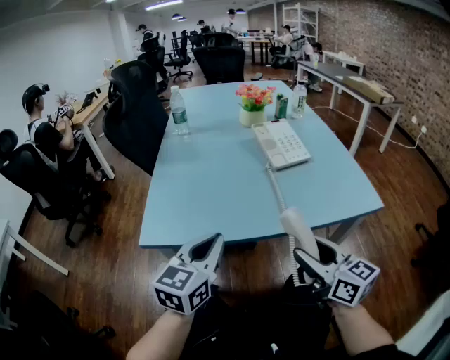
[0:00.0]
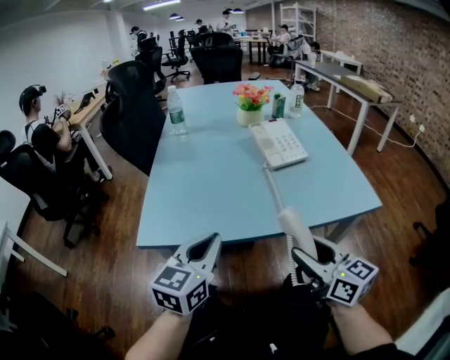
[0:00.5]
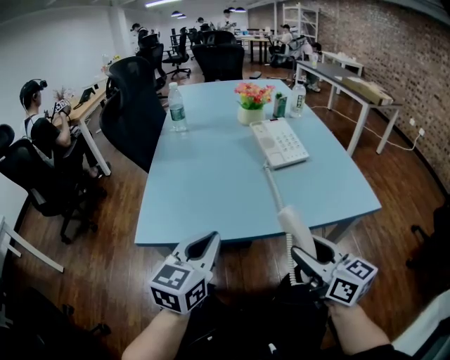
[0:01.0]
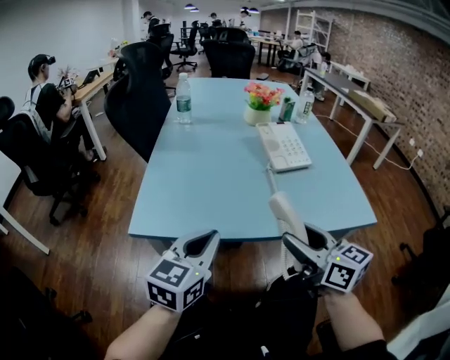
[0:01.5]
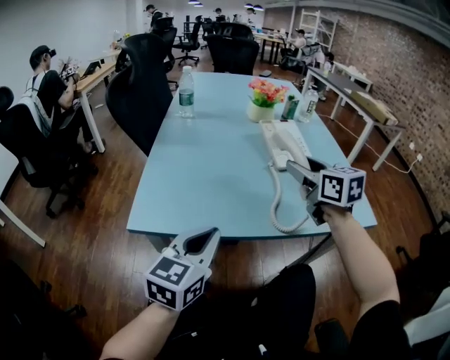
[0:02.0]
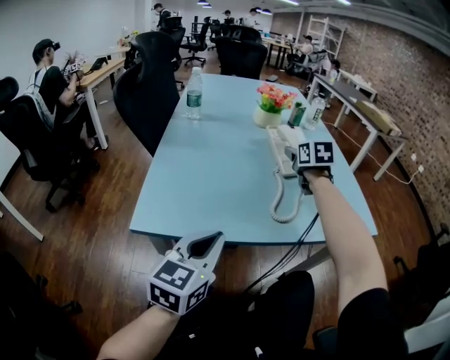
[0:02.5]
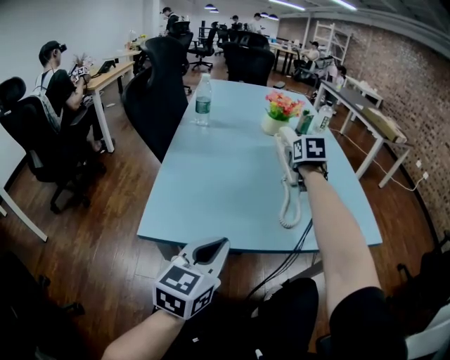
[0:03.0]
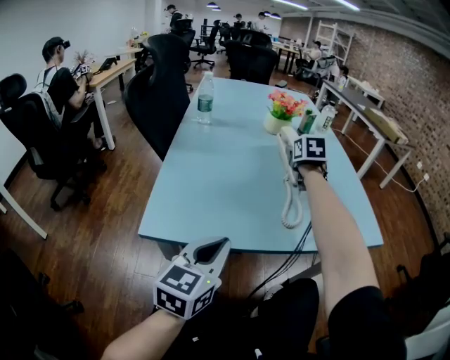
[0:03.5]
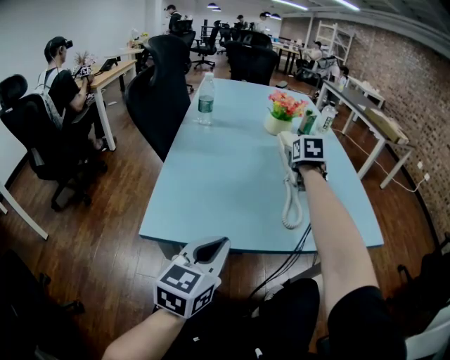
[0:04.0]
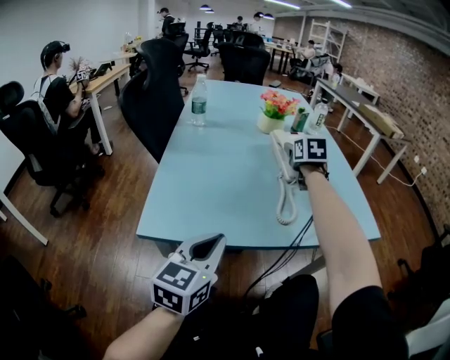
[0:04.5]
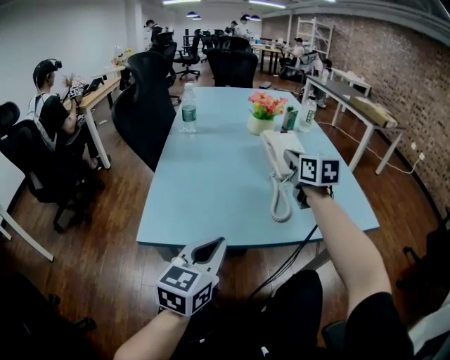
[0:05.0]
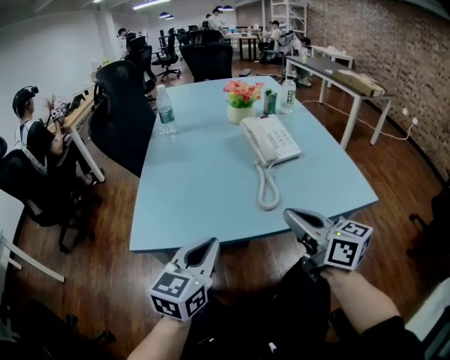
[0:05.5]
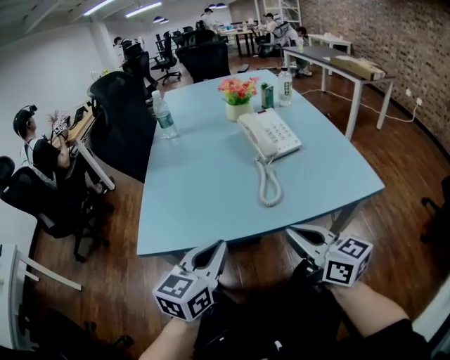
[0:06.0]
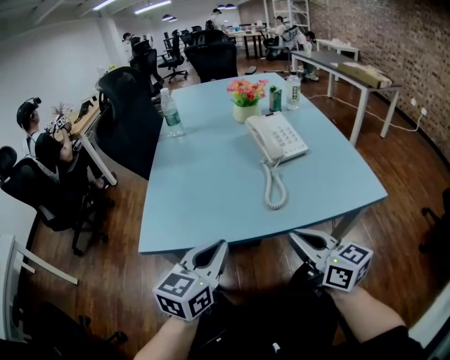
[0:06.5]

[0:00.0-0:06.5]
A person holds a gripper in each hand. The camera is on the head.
0:00.0 to 0:02.0: The right gripper heads forward, covering about 25 cm.
0:02.0 to 0:04.5: The right gripper moves forward, approximately 15 cm, and swivels approximately 20 degrees.
0:04.5 to 0:06.5: The right gripper heads backward, covering roughly 35 cm, swivels some 40 degrees, and closes its fingers.

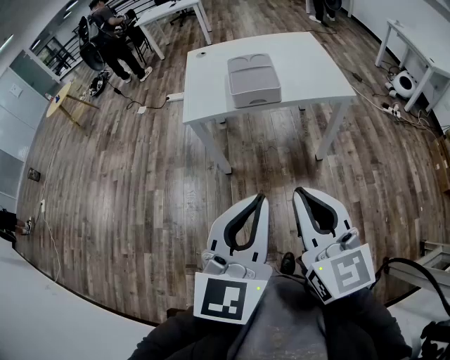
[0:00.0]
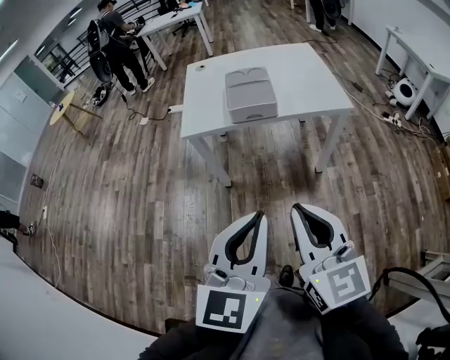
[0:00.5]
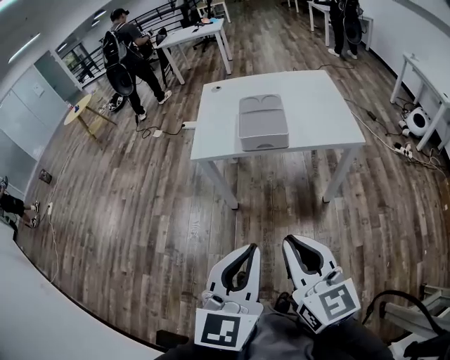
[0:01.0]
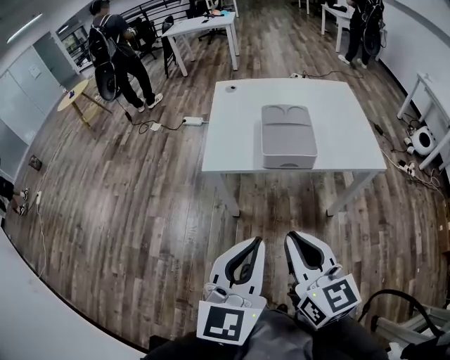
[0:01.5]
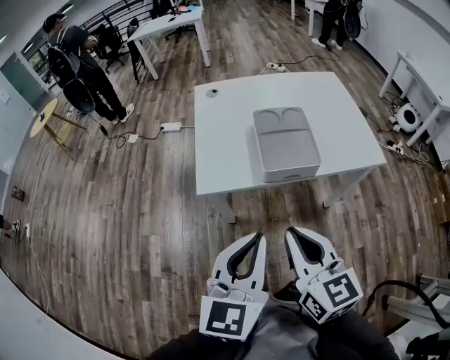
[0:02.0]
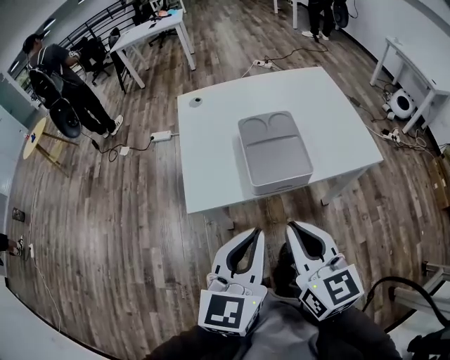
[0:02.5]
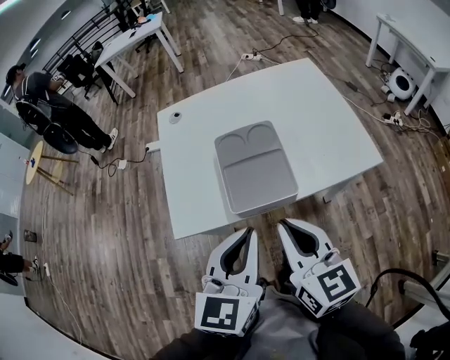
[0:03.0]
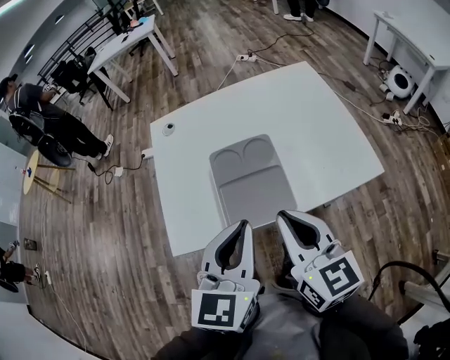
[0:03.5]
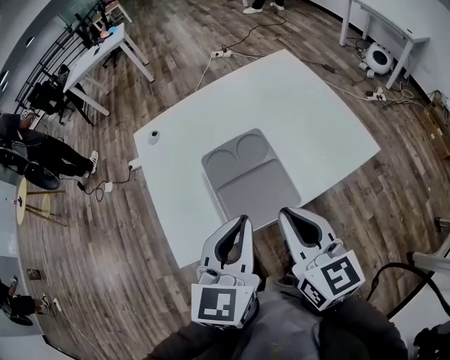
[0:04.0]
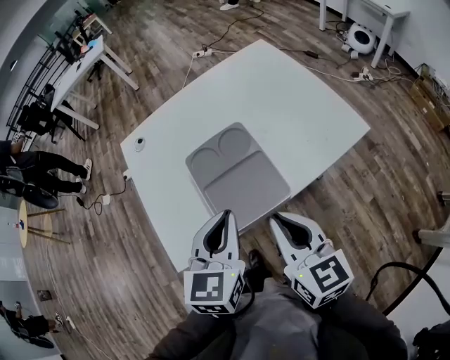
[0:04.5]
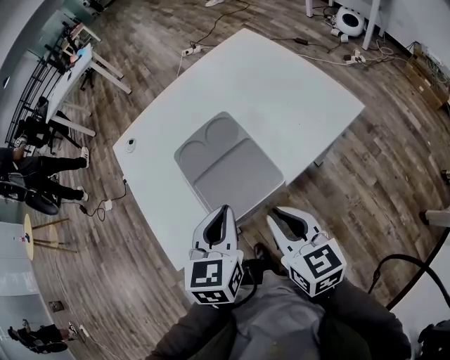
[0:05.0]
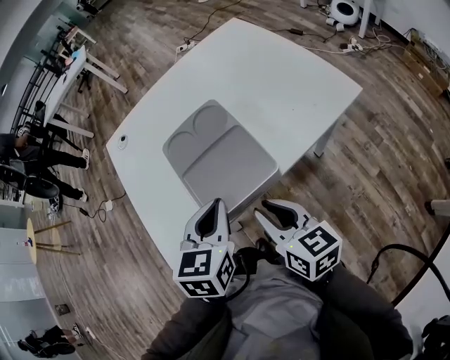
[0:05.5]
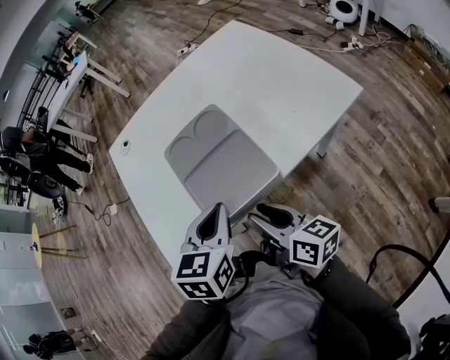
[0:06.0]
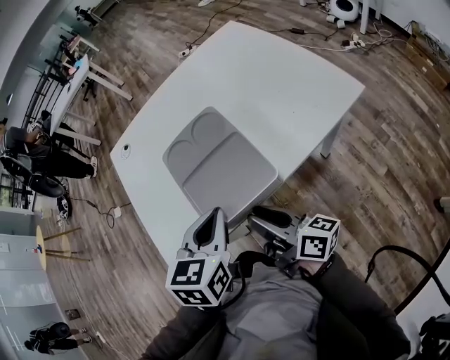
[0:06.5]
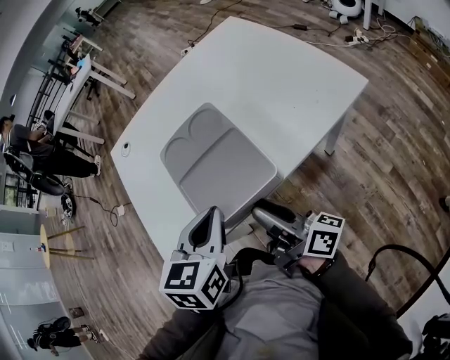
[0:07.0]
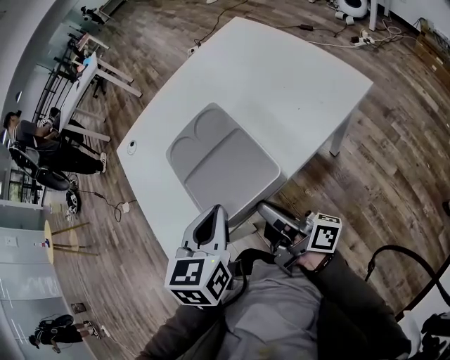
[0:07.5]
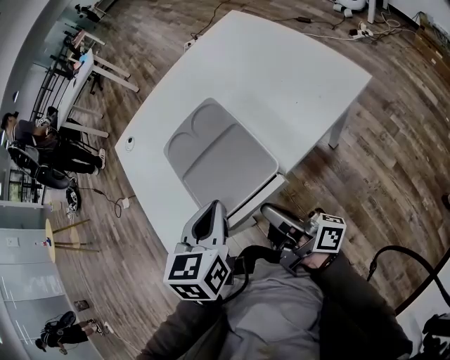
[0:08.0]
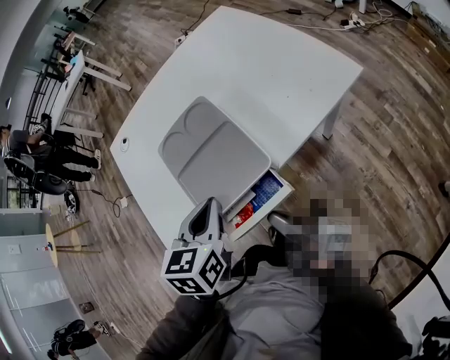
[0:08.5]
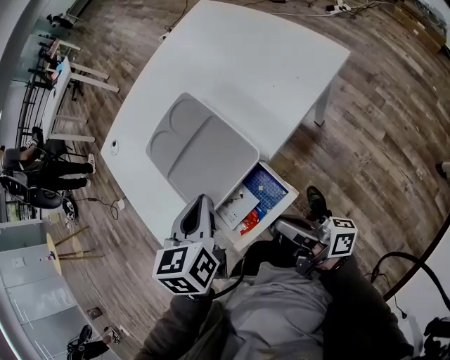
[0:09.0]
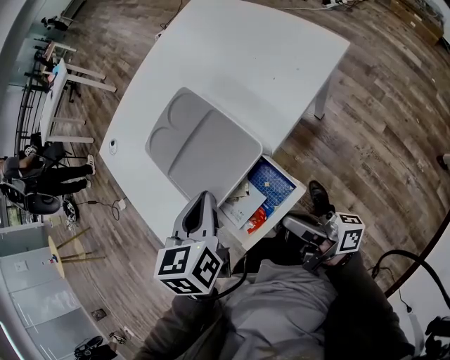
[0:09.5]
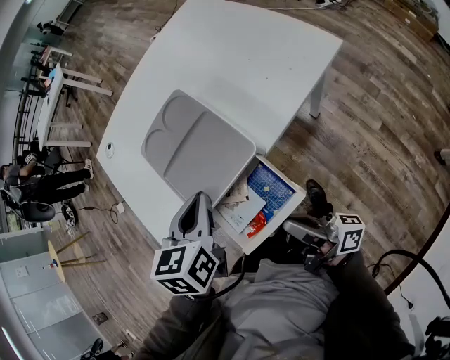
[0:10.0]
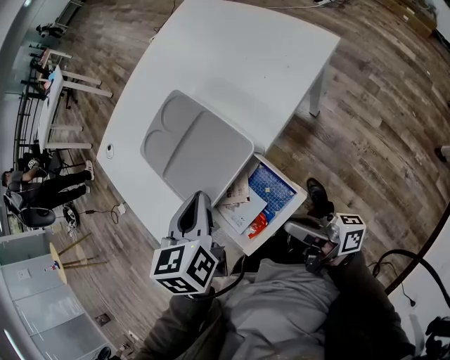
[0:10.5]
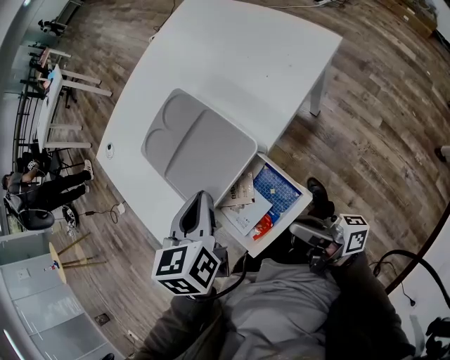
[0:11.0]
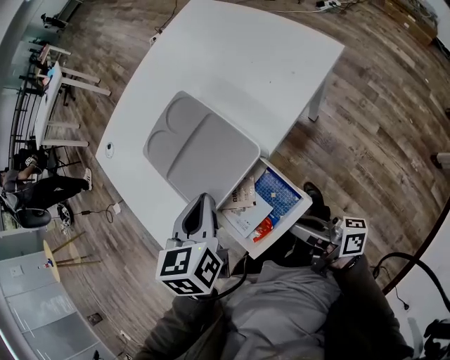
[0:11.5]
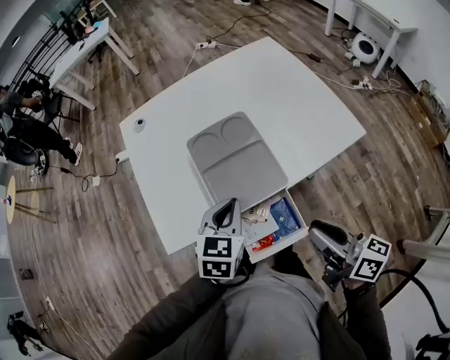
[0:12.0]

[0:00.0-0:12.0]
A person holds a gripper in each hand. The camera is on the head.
0:00.0 to 0:02.0: The left gripper is displaced forward by some 25 cm. The right gripper moves forward and to the left, roughly 25 cm.
0:02.0 to 0:04.0: The two grippers go approximately 20 cm forward.
0:04.0 to 0:06.0: The grippers both shift downward by roughly 15 cm. The right gripper rotates roughly 30 degrees, and opens up.
0:06.0 to 0:08.0: The right gripper angles its fingers upward, by about 30 degrees, and closes up.
0:08.0 to 0:10.0: The right gripper moves backward, about 10 cm.
0:10.0 to 0:12.0: The right gripper is displaced upward and to the right by roughly 15 cm, and points its fingers approximately 30 degrees further downward.

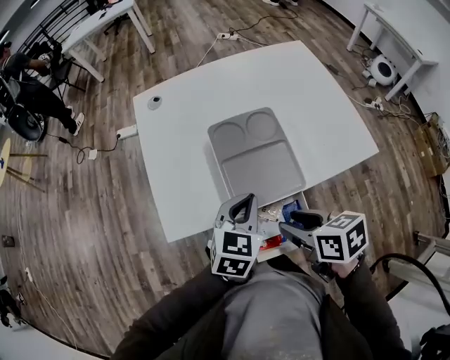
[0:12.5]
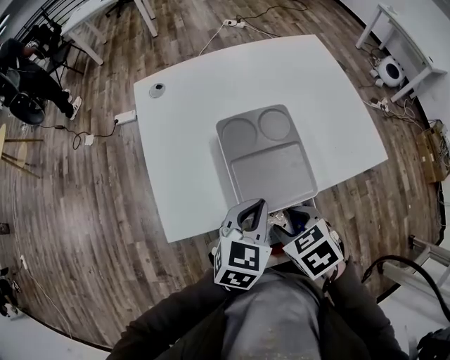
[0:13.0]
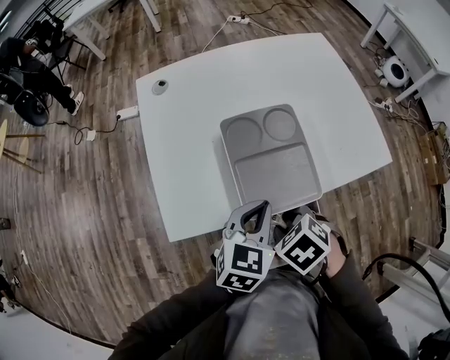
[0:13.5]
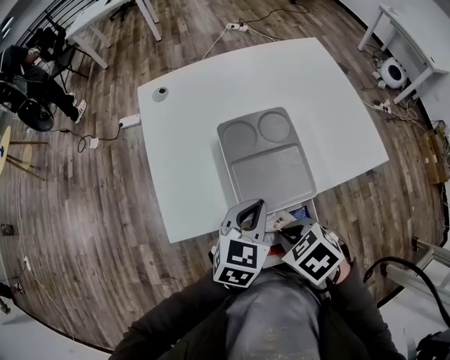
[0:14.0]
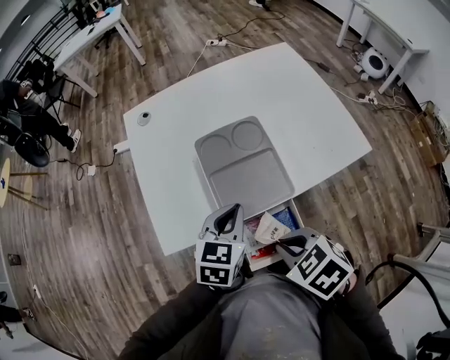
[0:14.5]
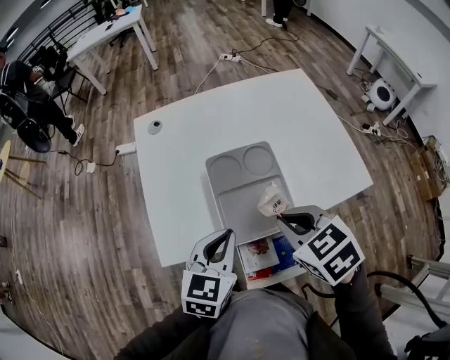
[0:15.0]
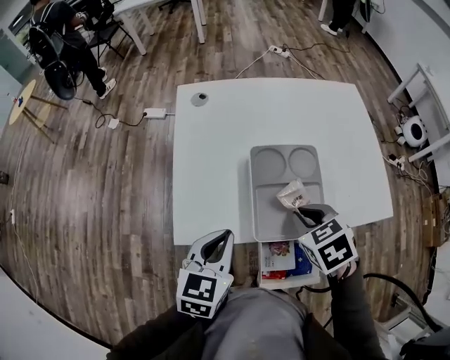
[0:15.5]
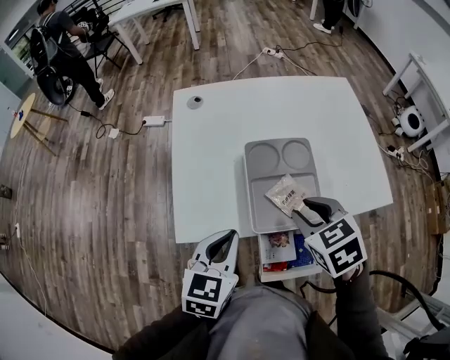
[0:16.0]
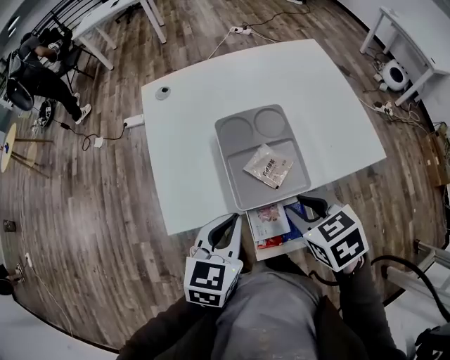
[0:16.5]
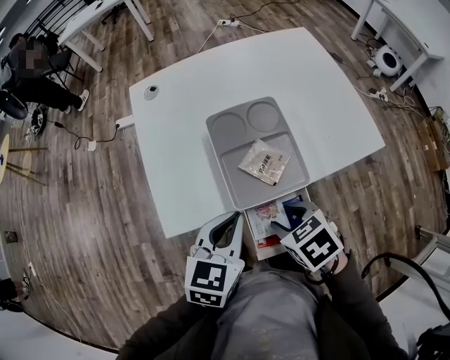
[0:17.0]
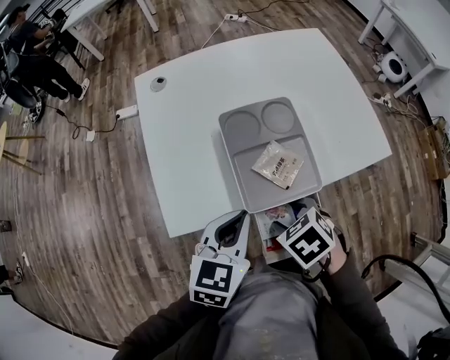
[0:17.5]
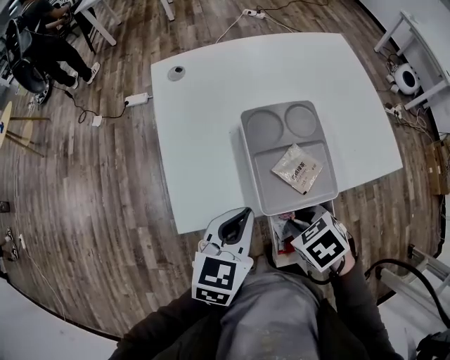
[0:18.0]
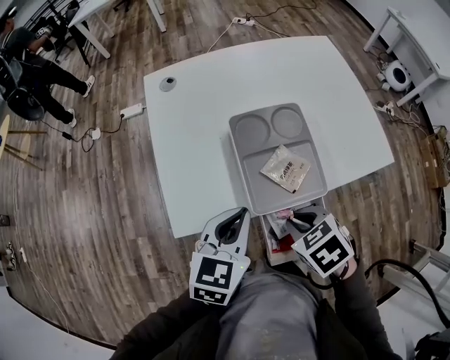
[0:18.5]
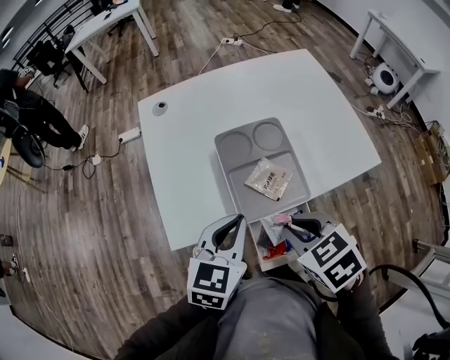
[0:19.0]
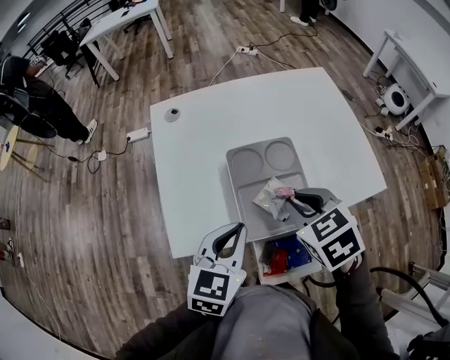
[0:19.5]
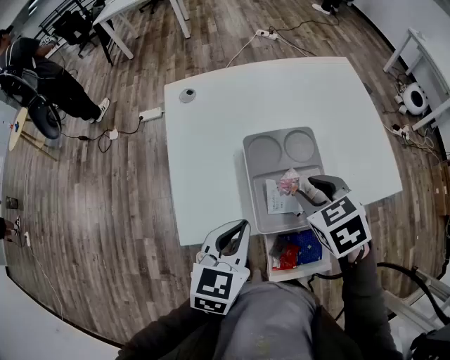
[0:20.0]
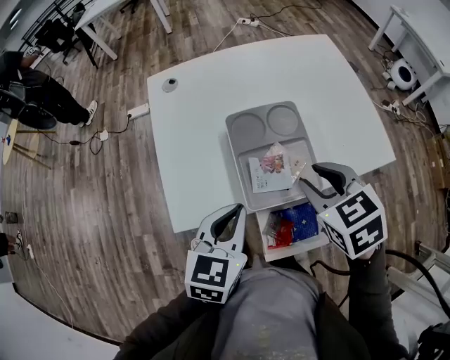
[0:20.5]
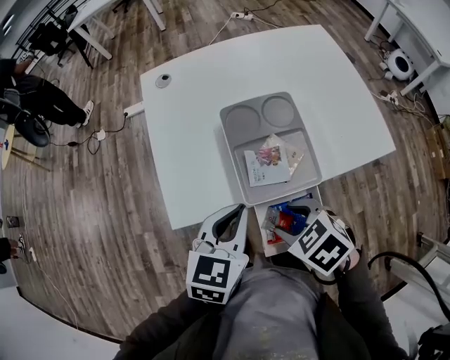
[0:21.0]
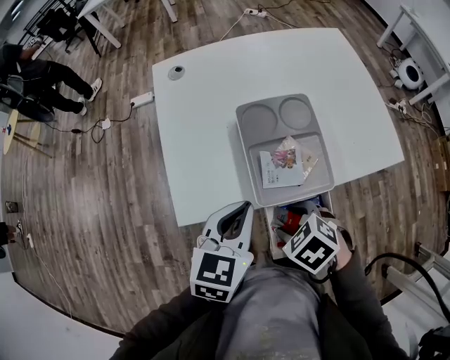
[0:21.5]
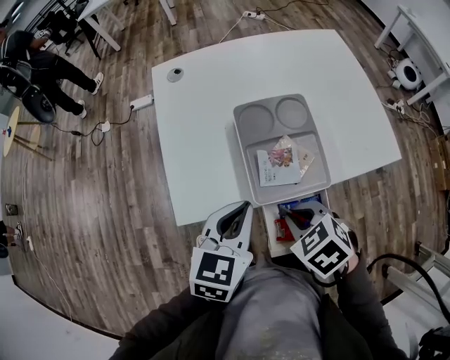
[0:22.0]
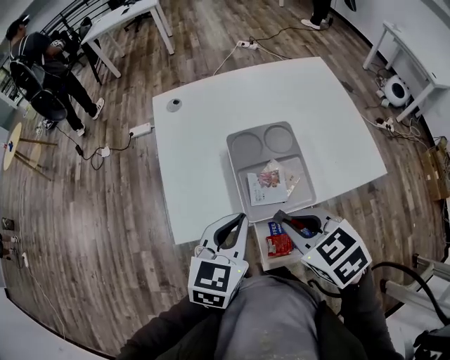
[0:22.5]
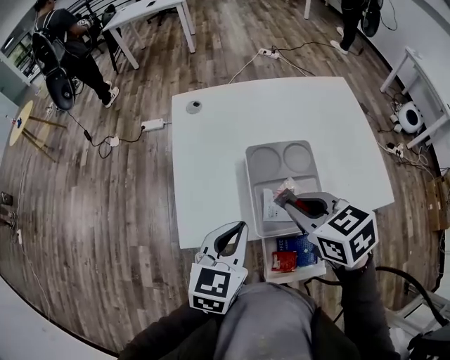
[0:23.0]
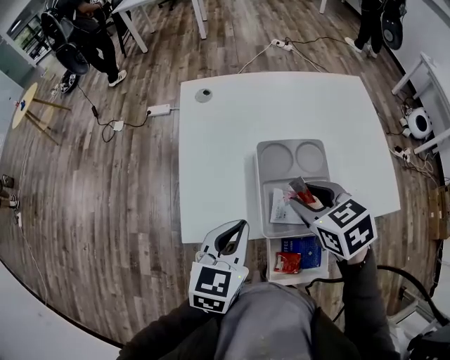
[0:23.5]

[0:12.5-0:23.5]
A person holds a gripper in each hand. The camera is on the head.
0:12.5 to 0:14.5: The right gripper goes downward and returns, some 5 cm each way, rotates some 30 degrees, and closes.
0:14.5 to 0:16.0: The right gripper travels forward by approximately 15 cm, and opens up. The left gripper goes roughly 10 cm to the left.
0:16.0 to 0:18.0: The right gripper goes about 15 cm downward and backward, rotates roughly 20 degrees, and opens, then closes again.
0:18.0 to 0:20.0: The right gripper travels forward and upward by roughly 15 cm, and rotates roughly 20 degrees.
0:20.0 to 0:21.5: The right gripper moves backward, downward and to the left, roughly 20 cm, rotates approximately 30 degrees, and opens up.
0:21.5 to 0:23.5: The right gripper is displaced forward and upward by some 20 cm, changes its angle by some 20 degrees, and closes, then opens again.
